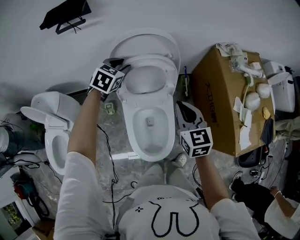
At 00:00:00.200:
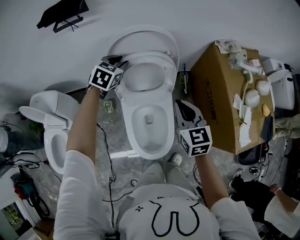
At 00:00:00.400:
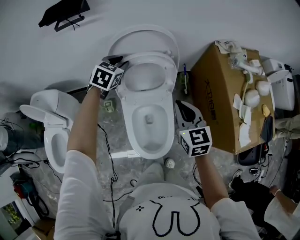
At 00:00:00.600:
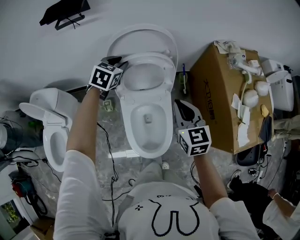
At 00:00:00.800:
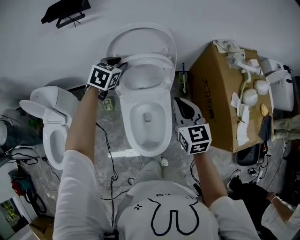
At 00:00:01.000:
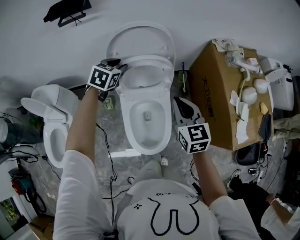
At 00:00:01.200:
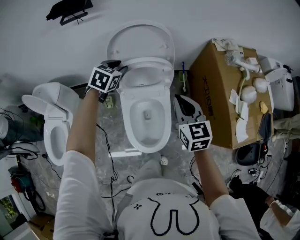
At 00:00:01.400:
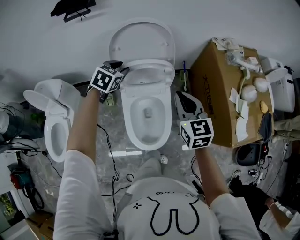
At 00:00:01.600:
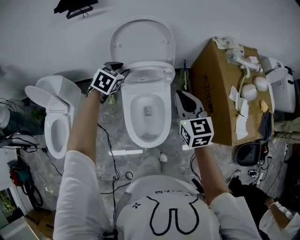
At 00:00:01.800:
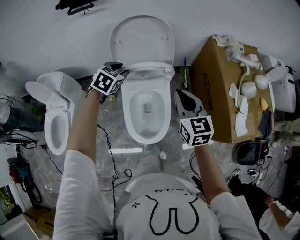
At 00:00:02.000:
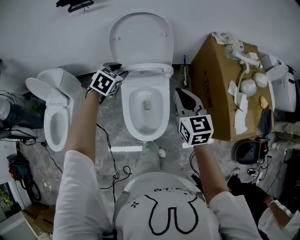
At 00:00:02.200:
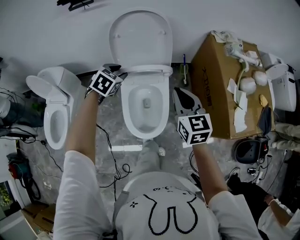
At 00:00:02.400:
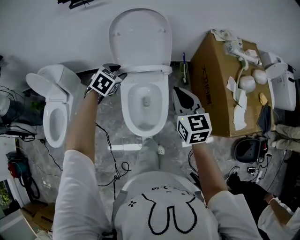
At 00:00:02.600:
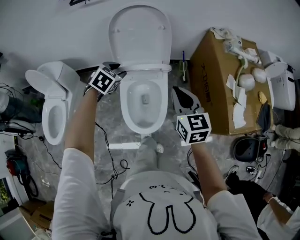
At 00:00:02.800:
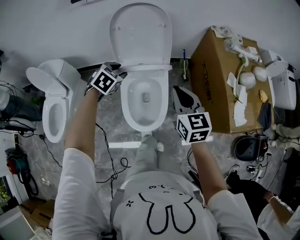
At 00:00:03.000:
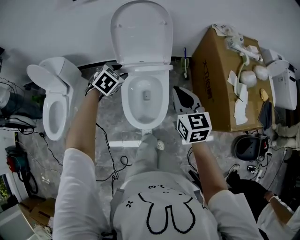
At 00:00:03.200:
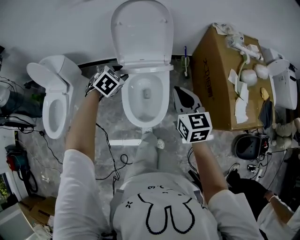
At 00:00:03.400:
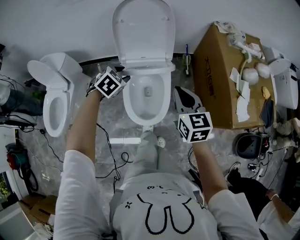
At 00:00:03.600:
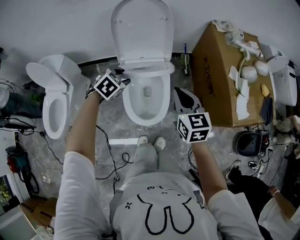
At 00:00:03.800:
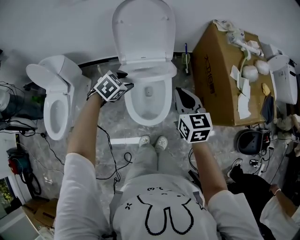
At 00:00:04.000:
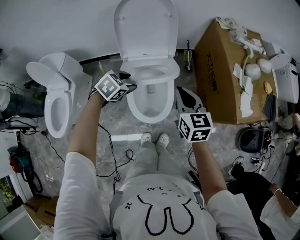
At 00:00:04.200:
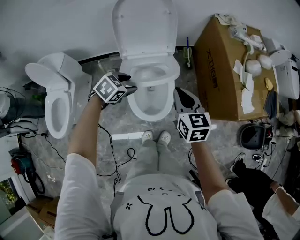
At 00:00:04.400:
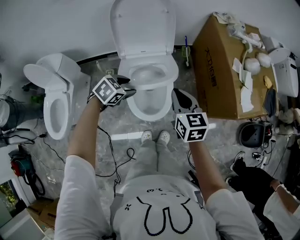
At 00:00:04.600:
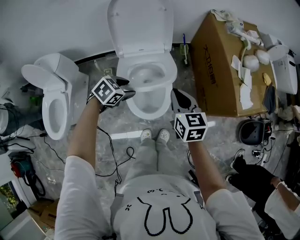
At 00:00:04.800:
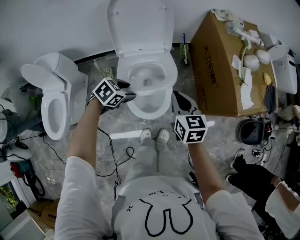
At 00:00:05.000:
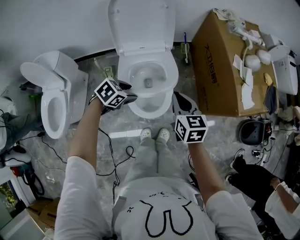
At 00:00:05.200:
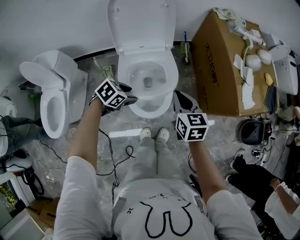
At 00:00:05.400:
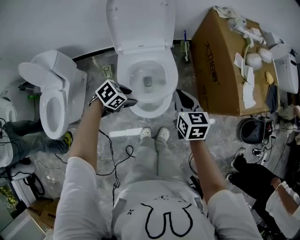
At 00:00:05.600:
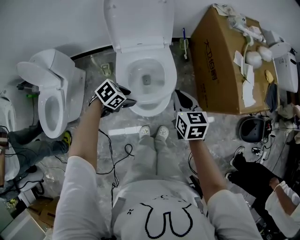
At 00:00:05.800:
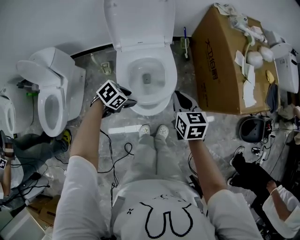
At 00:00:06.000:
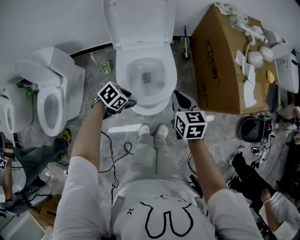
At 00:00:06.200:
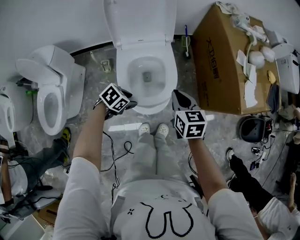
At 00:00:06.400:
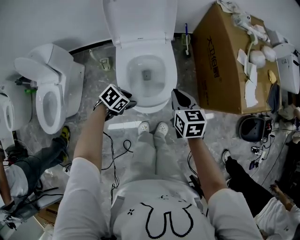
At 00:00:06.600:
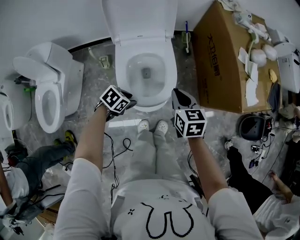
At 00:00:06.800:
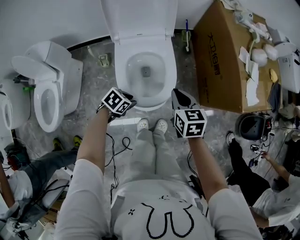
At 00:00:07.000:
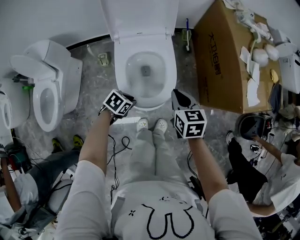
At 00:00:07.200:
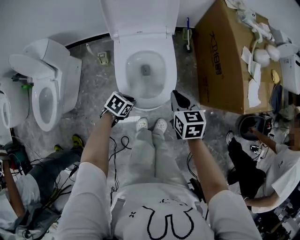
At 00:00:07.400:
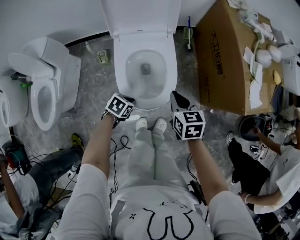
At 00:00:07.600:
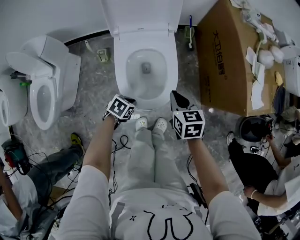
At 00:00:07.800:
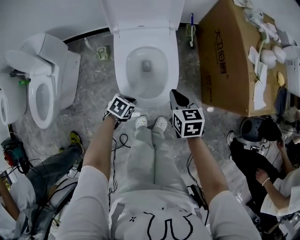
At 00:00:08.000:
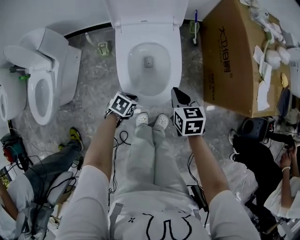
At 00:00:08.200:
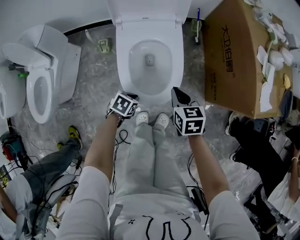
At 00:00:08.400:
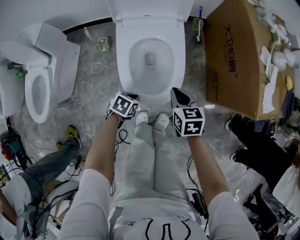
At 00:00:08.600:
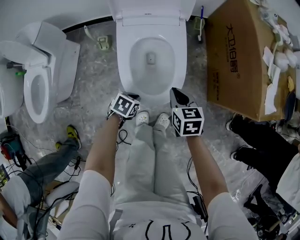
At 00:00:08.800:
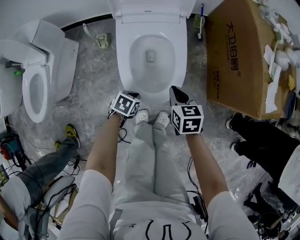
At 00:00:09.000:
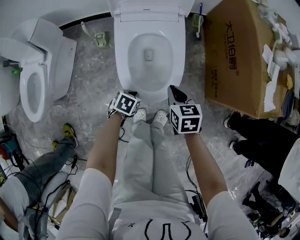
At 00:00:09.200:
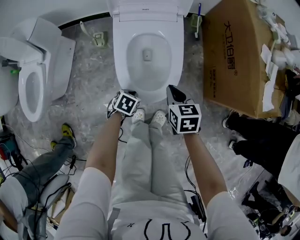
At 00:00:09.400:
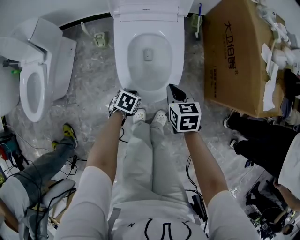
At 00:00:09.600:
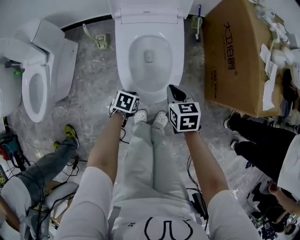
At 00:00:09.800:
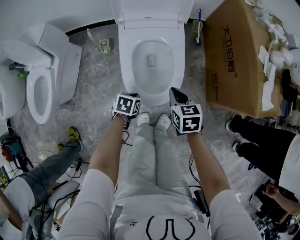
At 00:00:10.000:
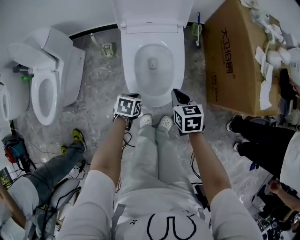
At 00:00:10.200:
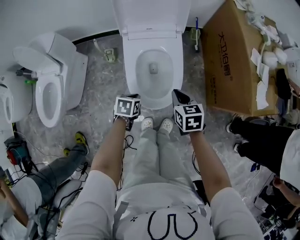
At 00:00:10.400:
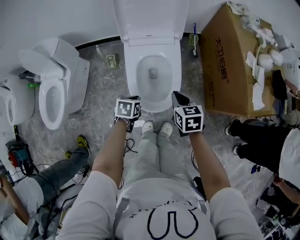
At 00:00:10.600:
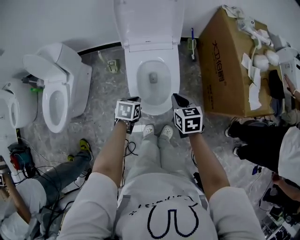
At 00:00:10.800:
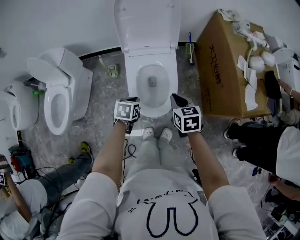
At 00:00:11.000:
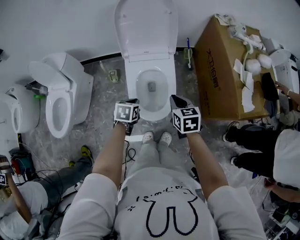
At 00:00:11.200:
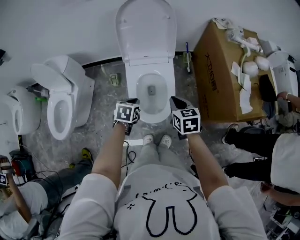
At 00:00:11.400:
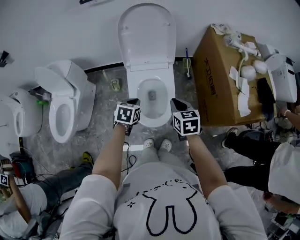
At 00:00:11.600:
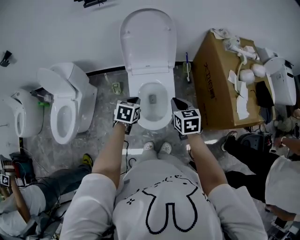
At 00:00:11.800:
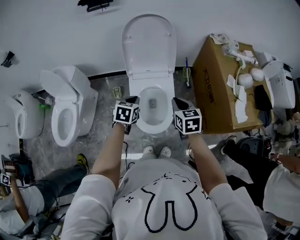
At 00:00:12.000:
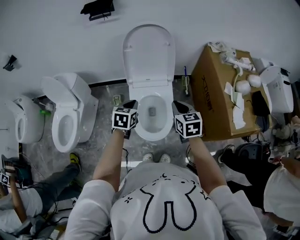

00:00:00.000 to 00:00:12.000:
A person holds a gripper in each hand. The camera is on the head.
00:00:00.000 to 00:00:01.600: The right gripper heads backward, covering about 5 cm; the left gripper travels backward by roughly 15 cm.
00:00:01.600 to 00:00:03.000: Both grippers travel together backward, approximately 10 cm.
00:00:03.000 to 00:00:04.400: The right gripper heads downward, covering about 5 cm. The left gripper is displaced backward and downward by about 10 cm, and turns by about 20 degrees.
00:00:04.400 to 00:00:06.000: The left gripper travels downward and backward by approximately 10 cm. The right gripper is displaced downward by roughly 10 cm.
00:00:06.000 to 00:00:07.600: Both grippers travel together downward, about 10 cm. The left gripper closes its fingers.
00:00:07.600 to 00:00:09.000: The two grippers go roughly 10 cm downward.
00:00:09.000 to 00:00:10.400: The grippers both shift upward by roughly 15 cm.
00:00:10.400 to 00:00:12.000: The grippers both shift upward by roughly 20 cm. The left gripper turns by approximately 30 degrees.

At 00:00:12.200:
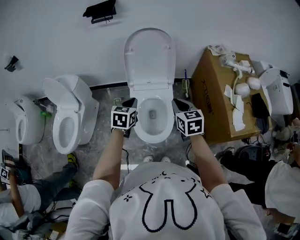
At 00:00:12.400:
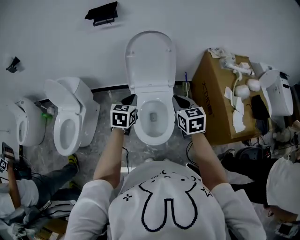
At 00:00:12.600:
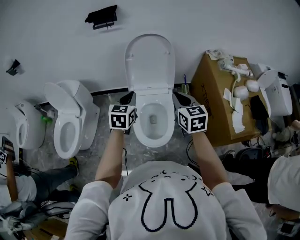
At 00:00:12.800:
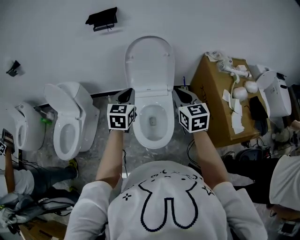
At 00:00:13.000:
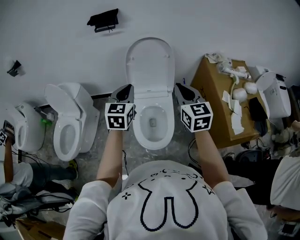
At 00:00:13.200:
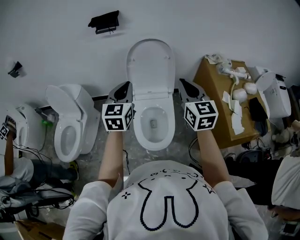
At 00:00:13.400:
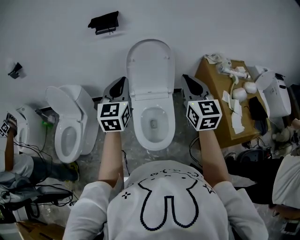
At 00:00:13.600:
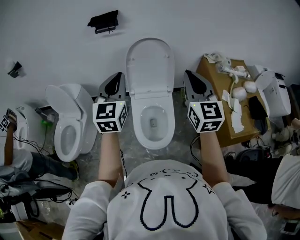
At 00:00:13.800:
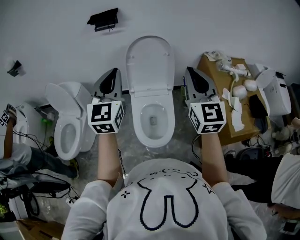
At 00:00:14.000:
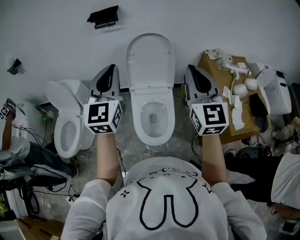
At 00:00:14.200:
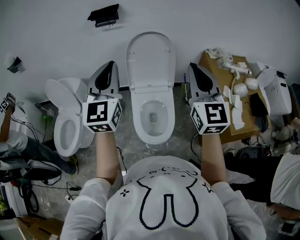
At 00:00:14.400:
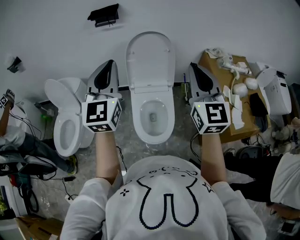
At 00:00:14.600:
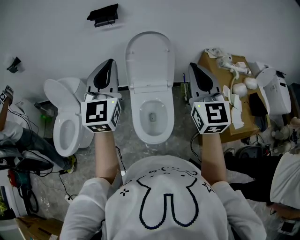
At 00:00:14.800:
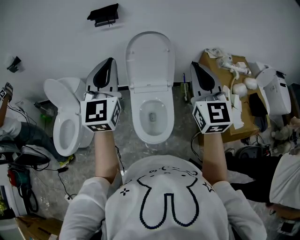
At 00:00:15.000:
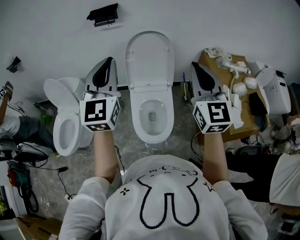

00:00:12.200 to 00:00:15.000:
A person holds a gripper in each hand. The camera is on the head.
00:00:12.200 to 00:00:13.600: Both grippers move upward, approximately 25 cm. The left gripper angles its fingers upward, by about 40 degrees. Meanwhile the right gripper angles its fingers upward, by roughly 30 degrees.
00:00:13.600 to 00:00:15.000: The left gripper travels upward by roughly 5 cm.

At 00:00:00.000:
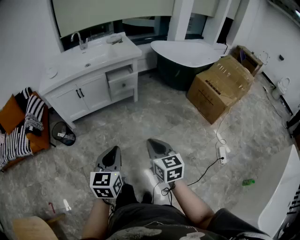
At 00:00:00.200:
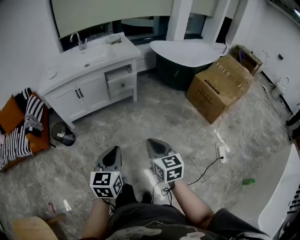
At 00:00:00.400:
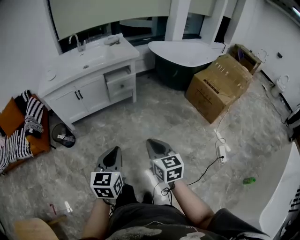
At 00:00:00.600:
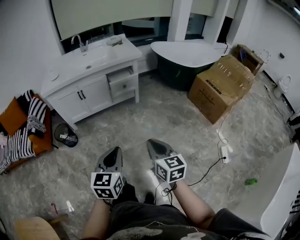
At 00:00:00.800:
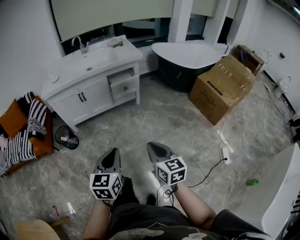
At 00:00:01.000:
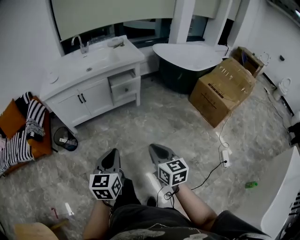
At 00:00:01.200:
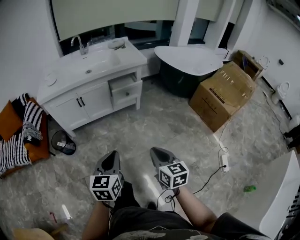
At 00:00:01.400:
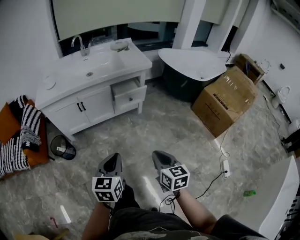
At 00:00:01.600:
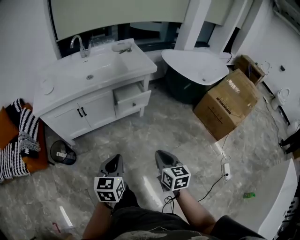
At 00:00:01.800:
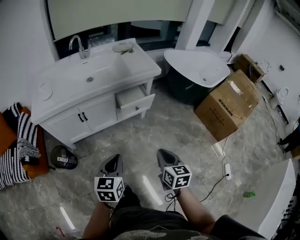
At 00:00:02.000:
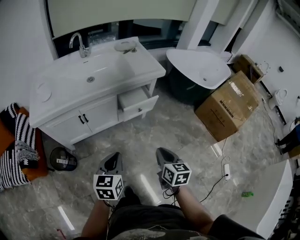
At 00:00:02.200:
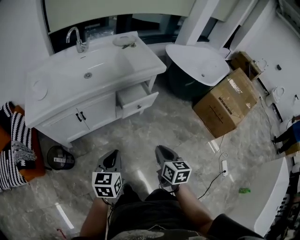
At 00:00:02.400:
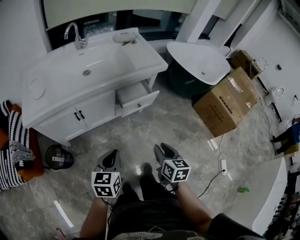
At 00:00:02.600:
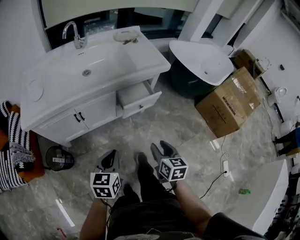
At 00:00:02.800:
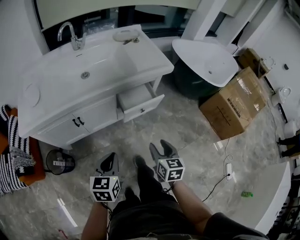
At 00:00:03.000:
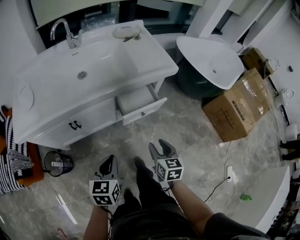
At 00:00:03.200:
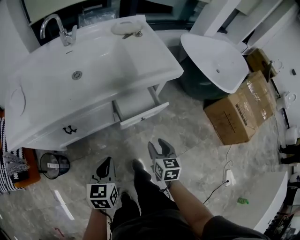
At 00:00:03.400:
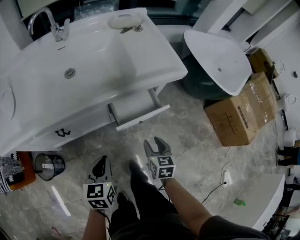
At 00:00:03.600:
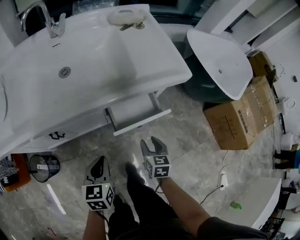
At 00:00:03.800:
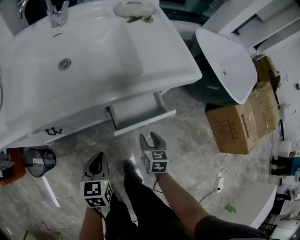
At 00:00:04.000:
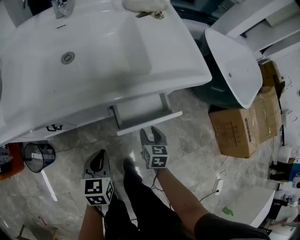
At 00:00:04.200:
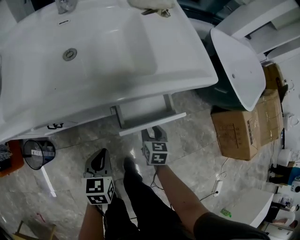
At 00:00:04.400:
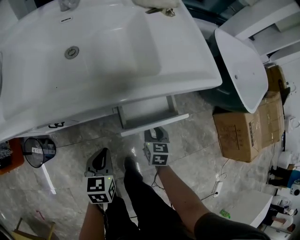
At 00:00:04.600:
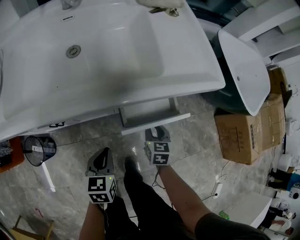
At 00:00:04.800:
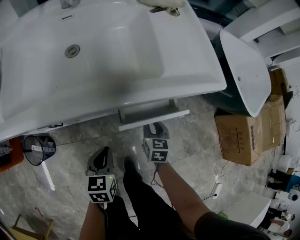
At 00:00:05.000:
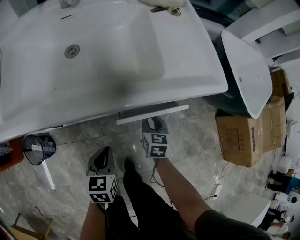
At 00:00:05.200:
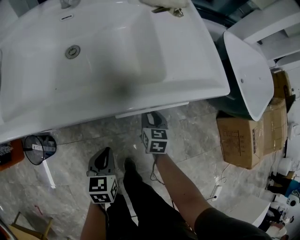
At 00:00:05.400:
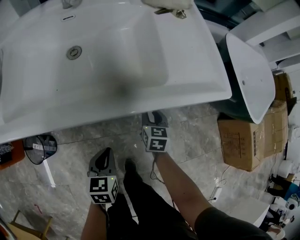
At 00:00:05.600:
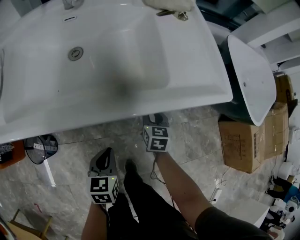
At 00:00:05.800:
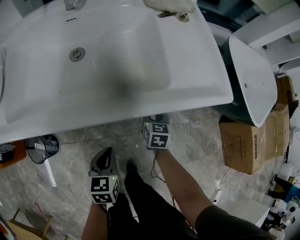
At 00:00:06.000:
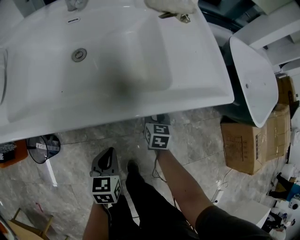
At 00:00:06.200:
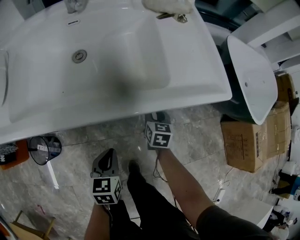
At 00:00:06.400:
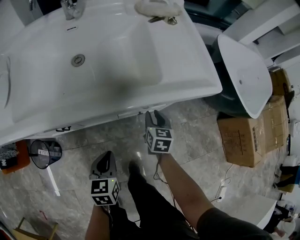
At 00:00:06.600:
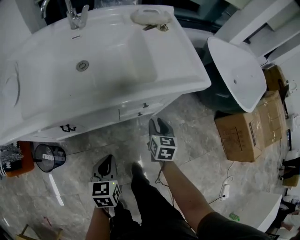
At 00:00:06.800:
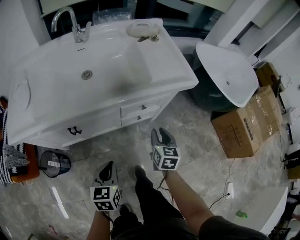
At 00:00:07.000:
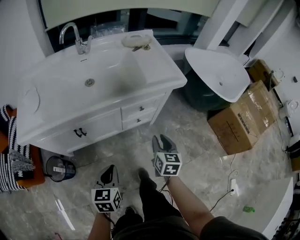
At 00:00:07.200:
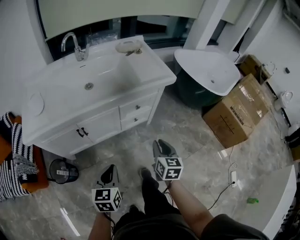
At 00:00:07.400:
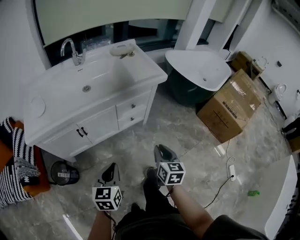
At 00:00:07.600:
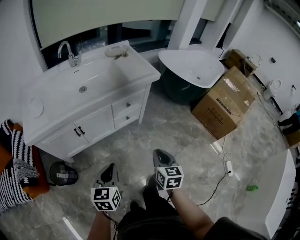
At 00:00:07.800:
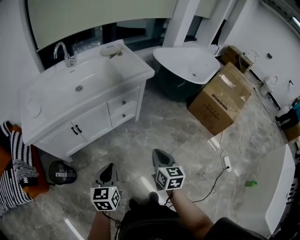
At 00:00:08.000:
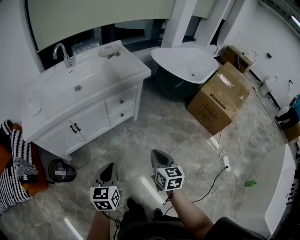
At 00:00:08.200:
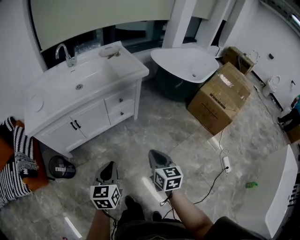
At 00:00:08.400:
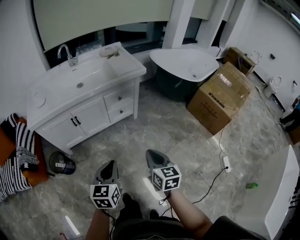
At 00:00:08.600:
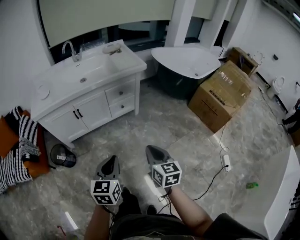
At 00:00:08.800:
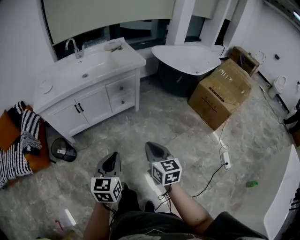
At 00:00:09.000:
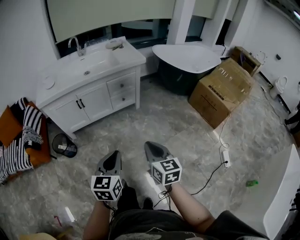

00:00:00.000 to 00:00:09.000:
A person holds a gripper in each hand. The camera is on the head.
00:00:00.000 to 00:00:01.600: The left gripper shifts about 25 cm forward and to the left. The right gripper is displaced forward by about 20 cm.
00:00:01.600 to 00:00:03.000: Both grippers move forward and downward, about 30 cm. The right gripper opens its fingers.
00:00:03.000 to 00:00:04.400: The left gripper goes roughly 25 cm downward and forward, while the right gripper heads forward and downward, covering roughly 30 cm.
00:00:04.400 to 00:00:06.000: The right gripper is displaced forward by about 10 cm.
00:00:06.000 to 00:00:07.600: Both grippers travel together backward and upward, about 50 cm. The right gripper rotates some 20 degrees; the left gripper swivels some 30 degrees.
00:00:07.600 to 00:00:09.000: The right gripper travels backward by about 25 cm, while the left gripper travels backward and to the right by roughly 30 cm.
